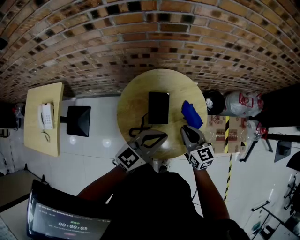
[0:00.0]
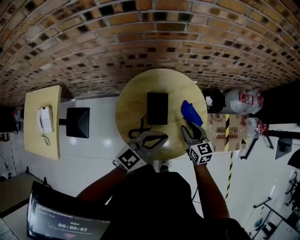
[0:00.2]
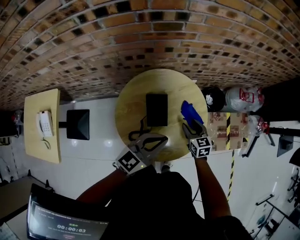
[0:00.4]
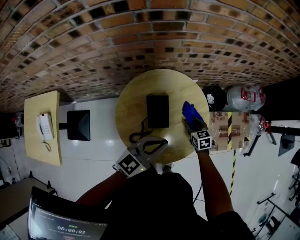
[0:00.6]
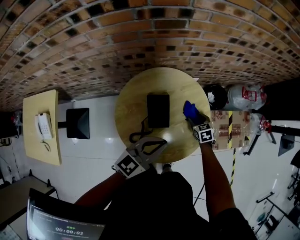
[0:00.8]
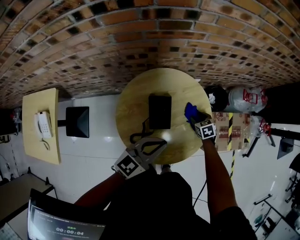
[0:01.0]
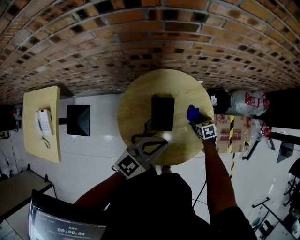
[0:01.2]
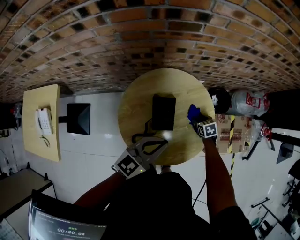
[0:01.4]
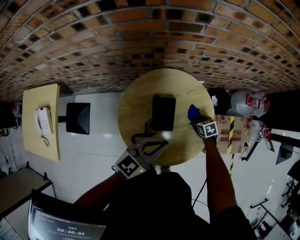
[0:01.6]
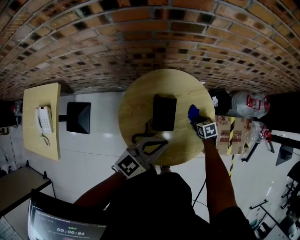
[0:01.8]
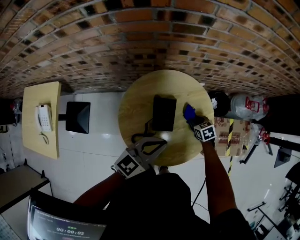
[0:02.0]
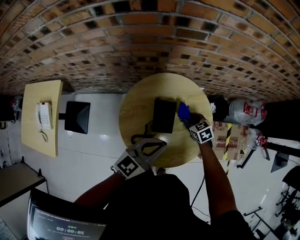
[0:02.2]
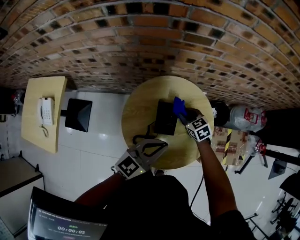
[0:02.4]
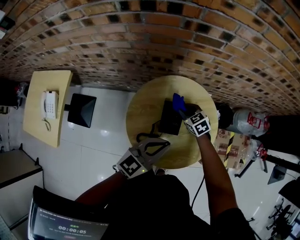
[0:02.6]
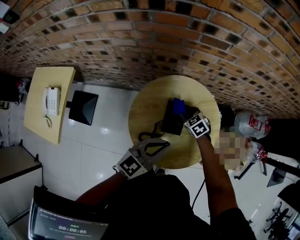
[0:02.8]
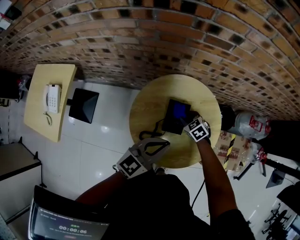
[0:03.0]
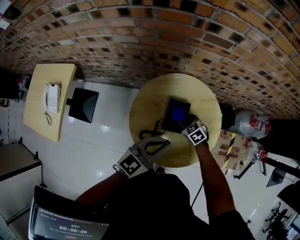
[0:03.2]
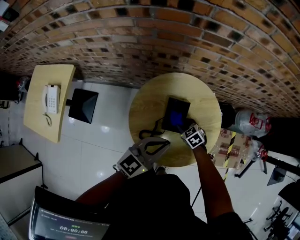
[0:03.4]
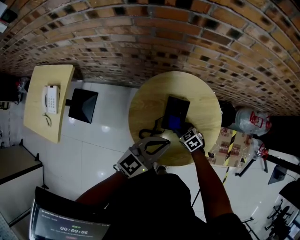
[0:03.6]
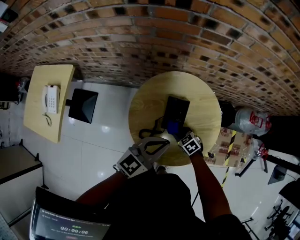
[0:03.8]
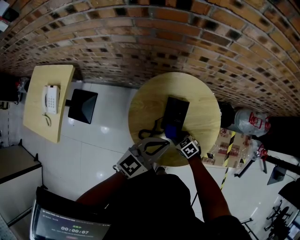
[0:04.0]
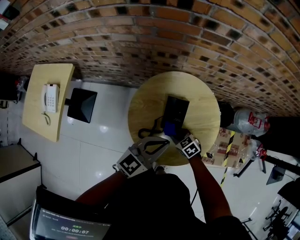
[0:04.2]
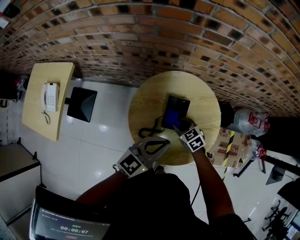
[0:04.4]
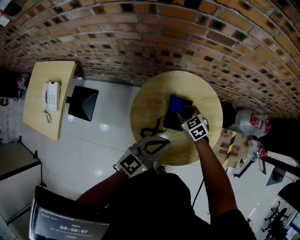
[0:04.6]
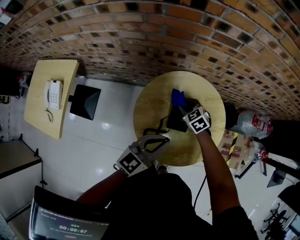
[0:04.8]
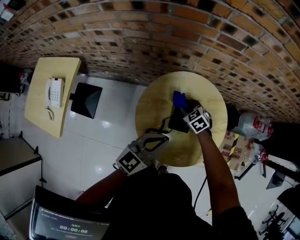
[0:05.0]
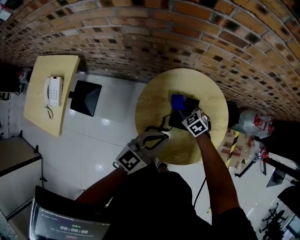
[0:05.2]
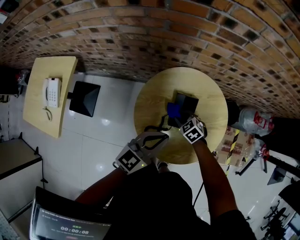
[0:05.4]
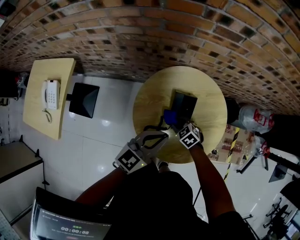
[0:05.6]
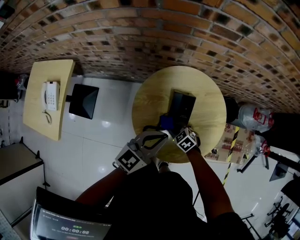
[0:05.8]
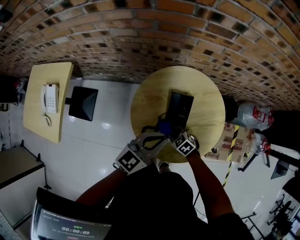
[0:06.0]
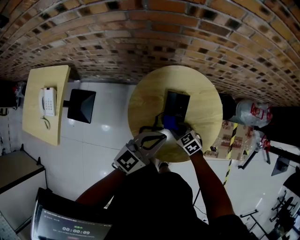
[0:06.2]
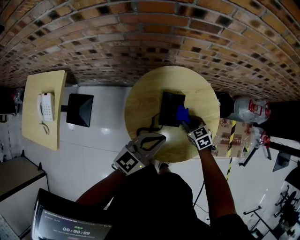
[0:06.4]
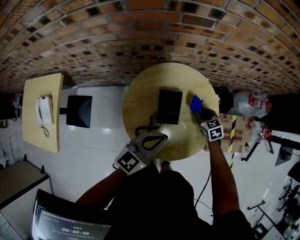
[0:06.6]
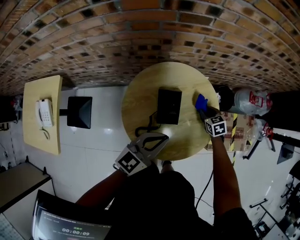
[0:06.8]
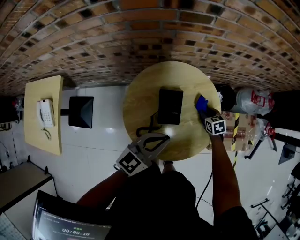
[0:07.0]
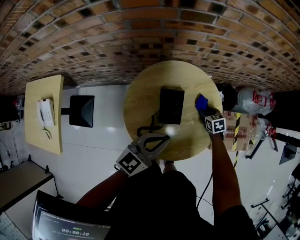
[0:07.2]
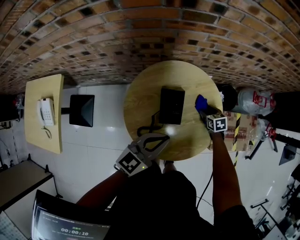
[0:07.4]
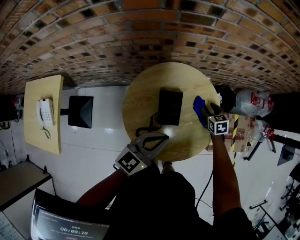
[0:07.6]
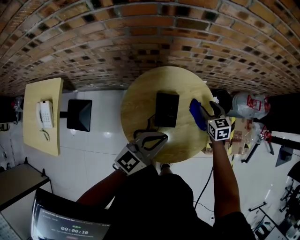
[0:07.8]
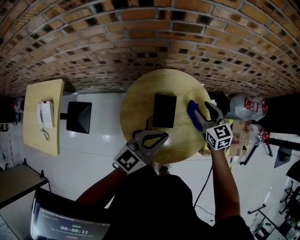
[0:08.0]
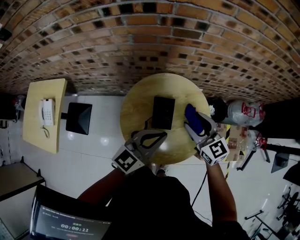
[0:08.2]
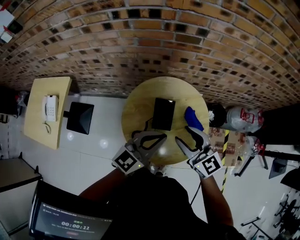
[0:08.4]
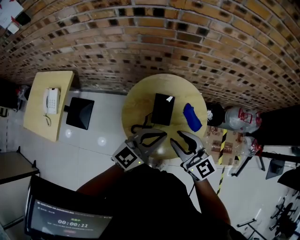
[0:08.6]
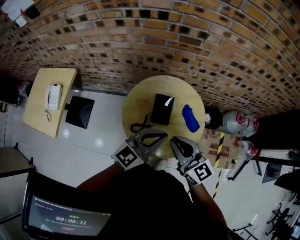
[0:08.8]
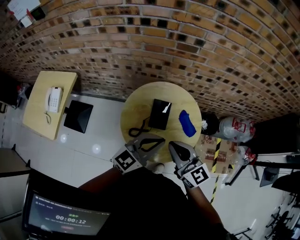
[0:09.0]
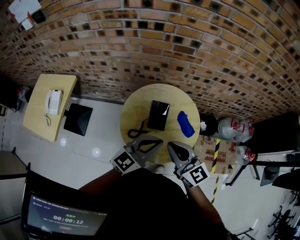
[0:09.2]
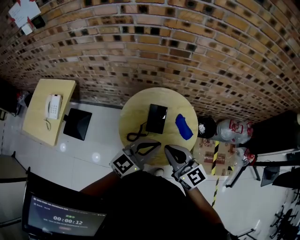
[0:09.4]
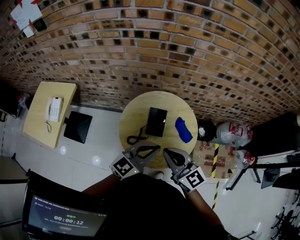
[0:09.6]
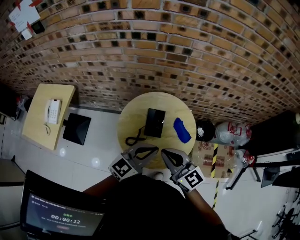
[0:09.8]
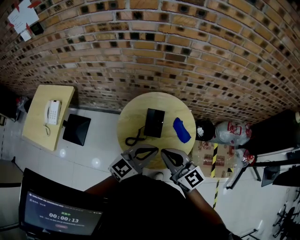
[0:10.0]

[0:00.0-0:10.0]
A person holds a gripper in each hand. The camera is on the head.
0:00.0 to 0:01.4: The left gripper ends up some 5 cm from where it was. The right gripper moves downward and forward, about 30 cm, angles its fingers downward, by approximately 40 degrees, and opens its fingers.
0:01.4 to 0:02.8: The right gripper moves to the left and upward, roughly 20 cm, swivels roughly 40 degrees, and closes.
0:02.8 to 0:04.2: The right gripper travels backward by approximately 15 cm.
0:04.2 to 0:05.8: The right gripper moves approximately 15 cm forward and comes back.
0:05.8 to 0:07.2: The left gripper shifts by approximately 5 cm; the right gripper moves roughly 5 cm upward and comes back, and turns by approximately 40 degrees.
0:07.2 to 0:08.6: The right gripper is displaced upward and backward by about 40 cm, and tips its fingers upward by approximately 50 degrees. Meanwhile the left gripper is displaced upward by about 10 cm.
0:08.6 to 0:10.0: The grippers both shift backward by some 5 cm. The right gripper closes.

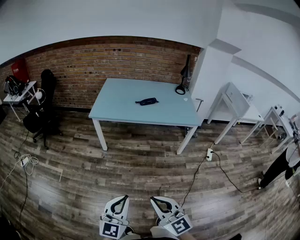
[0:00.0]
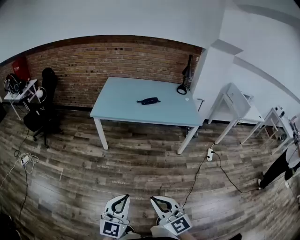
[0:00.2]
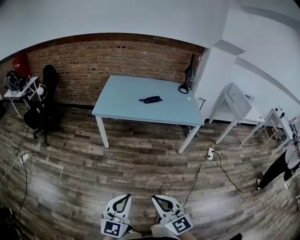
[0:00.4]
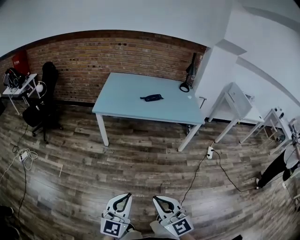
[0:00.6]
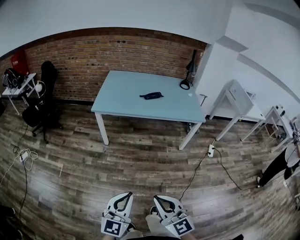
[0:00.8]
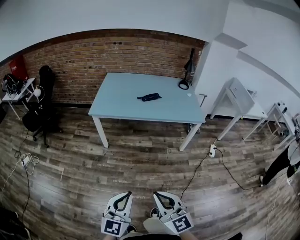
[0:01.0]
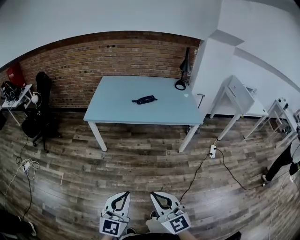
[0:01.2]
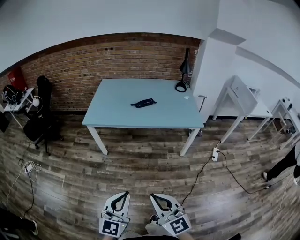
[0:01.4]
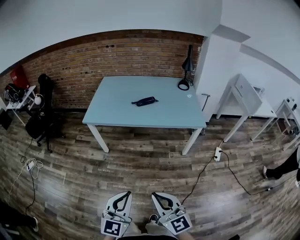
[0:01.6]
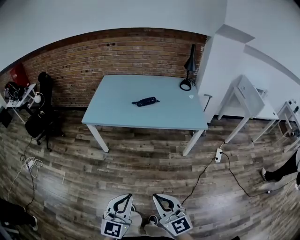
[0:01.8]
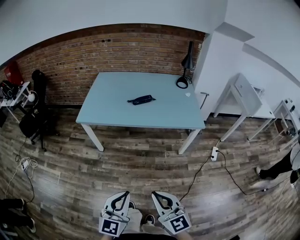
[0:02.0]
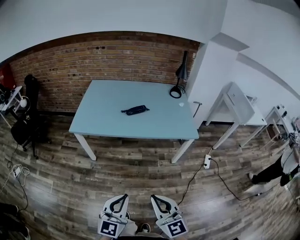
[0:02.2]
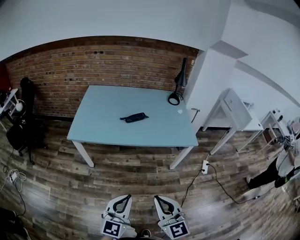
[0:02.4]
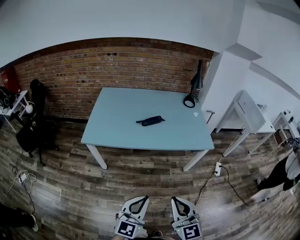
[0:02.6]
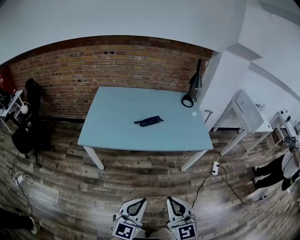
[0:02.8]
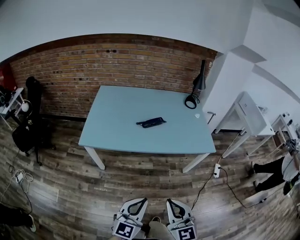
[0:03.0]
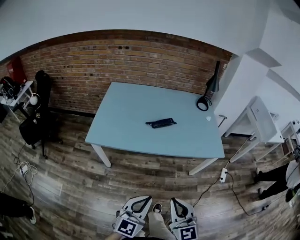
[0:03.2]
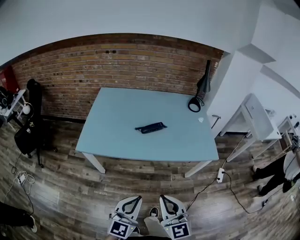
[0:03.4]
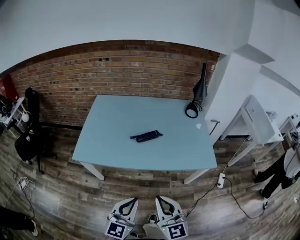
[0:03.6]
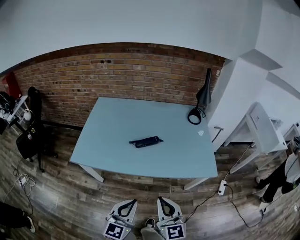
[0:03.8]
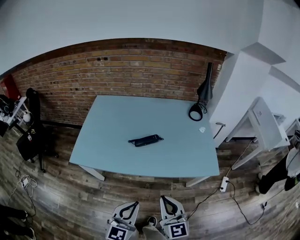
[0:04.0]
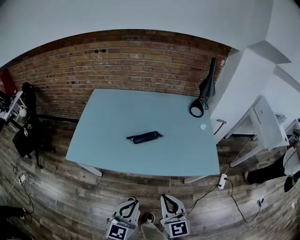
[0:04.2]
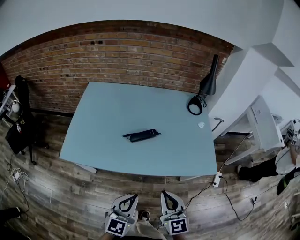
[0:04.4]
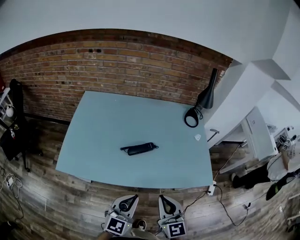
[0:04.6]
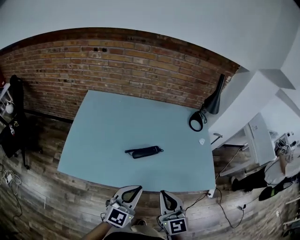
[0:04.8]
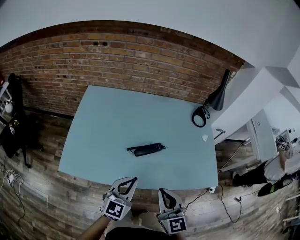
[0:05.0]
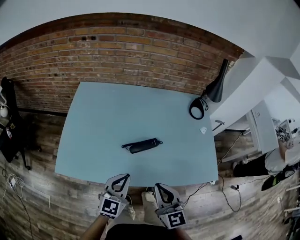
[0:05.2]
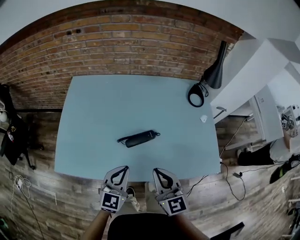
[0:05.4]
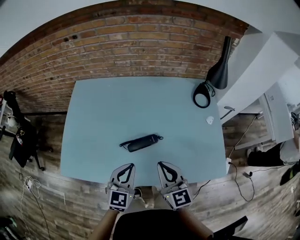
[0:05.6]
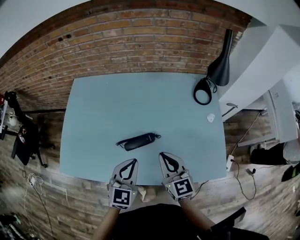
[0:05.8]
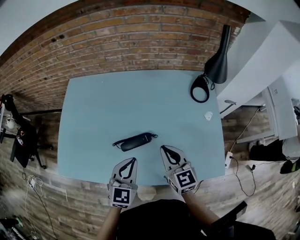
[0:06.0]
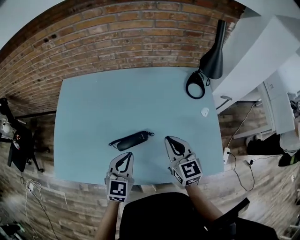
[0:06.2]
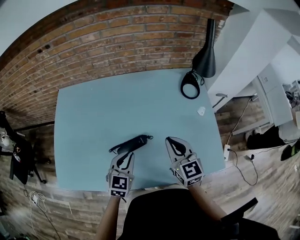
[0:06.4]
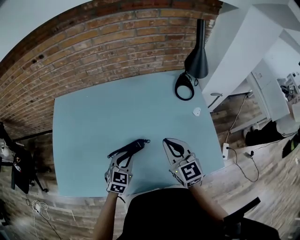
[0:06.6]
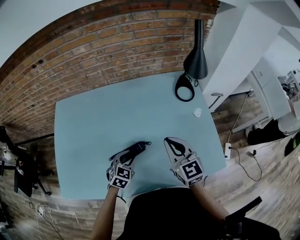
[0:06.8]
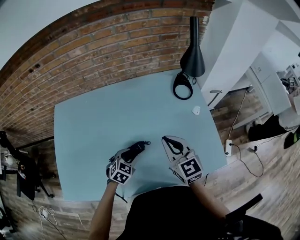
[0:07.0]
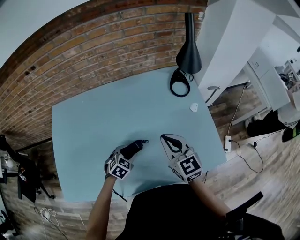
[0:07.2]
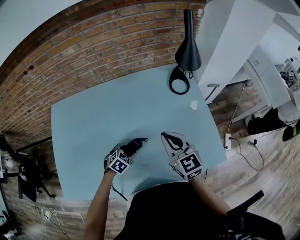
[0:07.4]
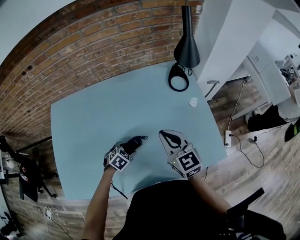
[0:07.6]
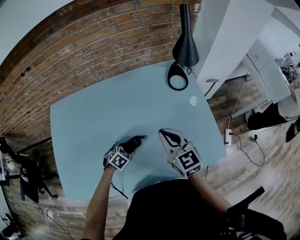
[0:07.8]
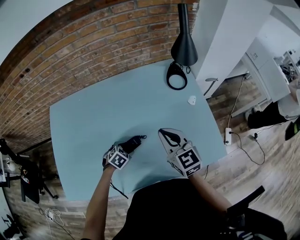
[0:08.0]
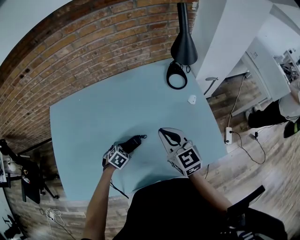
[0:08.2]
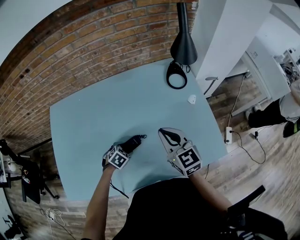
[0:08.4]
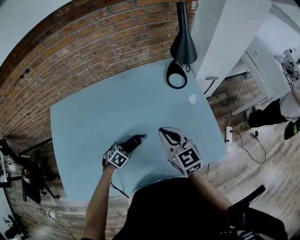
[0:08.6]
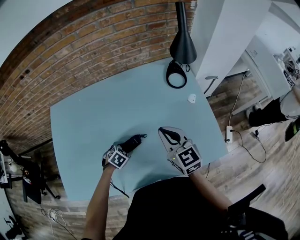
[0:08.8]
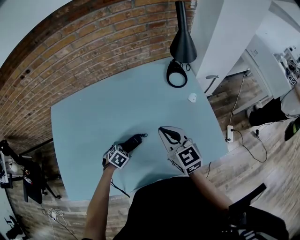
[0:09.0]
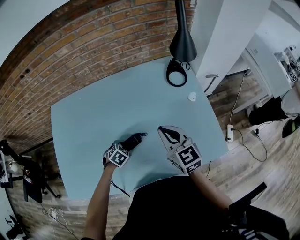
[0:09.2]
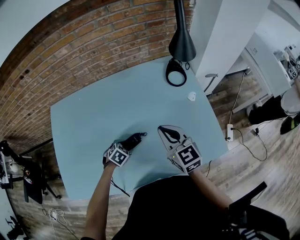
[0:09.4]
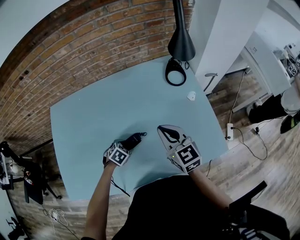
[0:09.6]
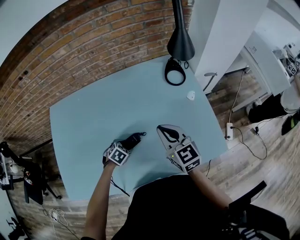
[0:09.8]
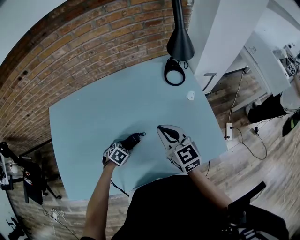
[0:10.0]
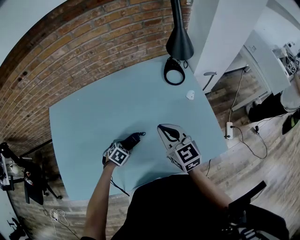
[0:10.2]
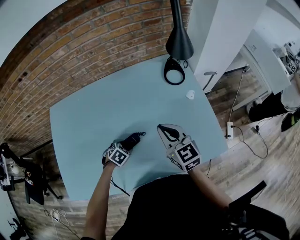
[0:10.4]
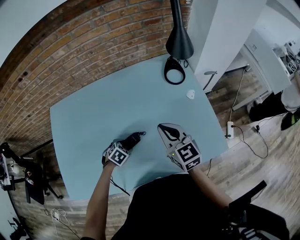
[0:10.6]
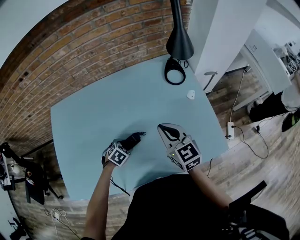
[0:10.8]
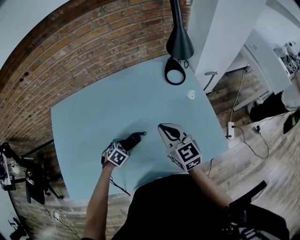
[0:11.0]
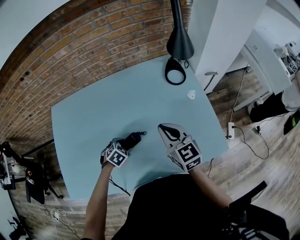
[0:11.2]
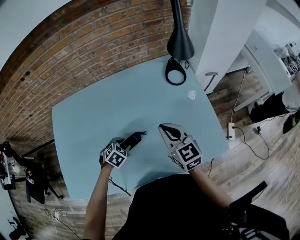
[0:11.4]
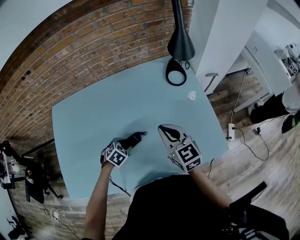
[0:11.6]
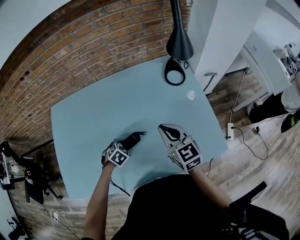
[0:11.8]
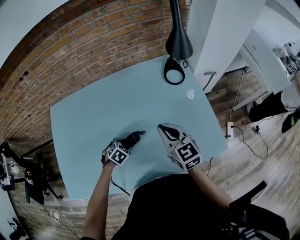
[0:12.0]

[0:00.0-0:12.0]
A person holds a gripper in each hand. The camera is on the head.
0:00.0 to 0:01.6: The two grippers go some 20 cm forward and to the right.
0:01.6 to 0:03.0: The grippers both shift forward by some 25 cm.
0:03.0 to 0:04.4: The two grippers go some 25 cm forward.
0:04.4 to 0:06.0: Both grippers move forward, about 30 cm.
0:06.0 to 0:07.6: The right gripper is displaced forward and to the right by some 5 cm. Meanwhile the left gripper shifts about 20 cm downward, tips its fingers downward by about 40 degrees, and opens up.
0:07.6 to 0:09.0: The grippers make only small movements.
0:09.0 to 0:10.4: Neither gripper changes place.
0:10.4 to 0:12.0: The grippers make only small movements.

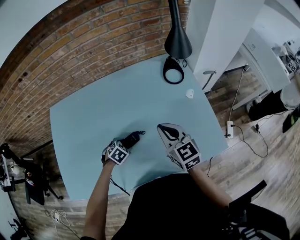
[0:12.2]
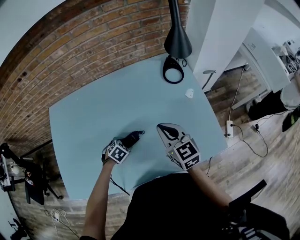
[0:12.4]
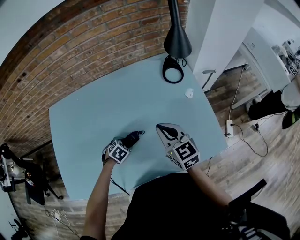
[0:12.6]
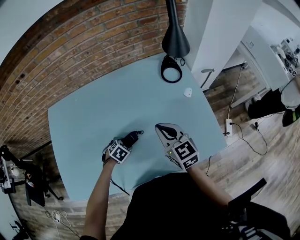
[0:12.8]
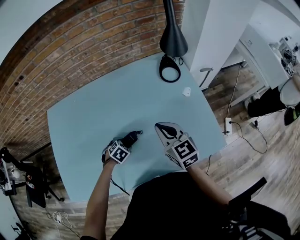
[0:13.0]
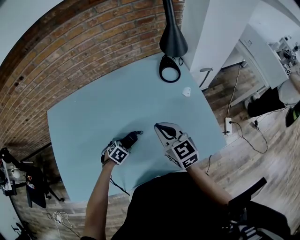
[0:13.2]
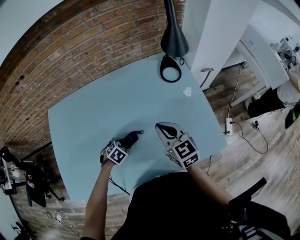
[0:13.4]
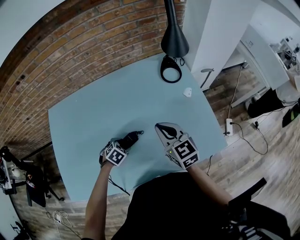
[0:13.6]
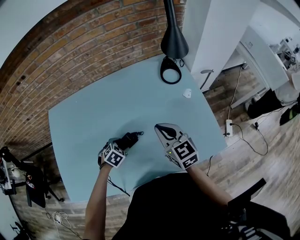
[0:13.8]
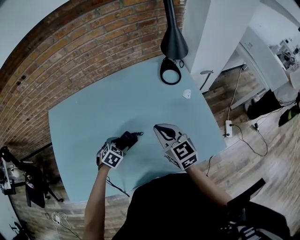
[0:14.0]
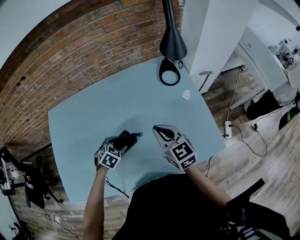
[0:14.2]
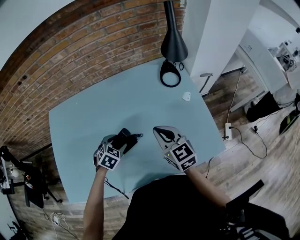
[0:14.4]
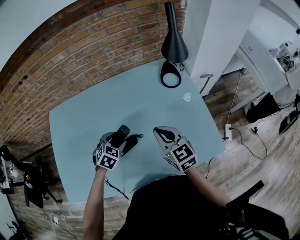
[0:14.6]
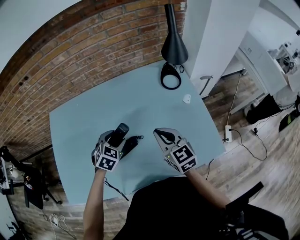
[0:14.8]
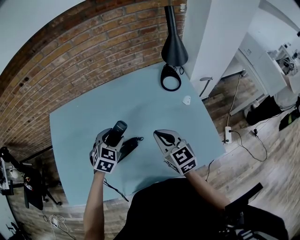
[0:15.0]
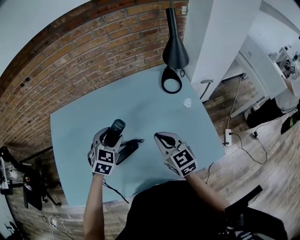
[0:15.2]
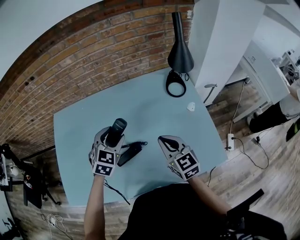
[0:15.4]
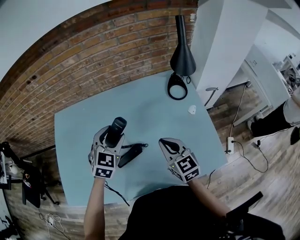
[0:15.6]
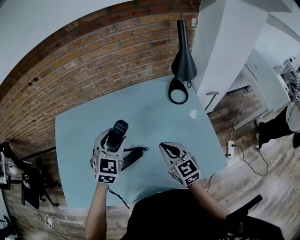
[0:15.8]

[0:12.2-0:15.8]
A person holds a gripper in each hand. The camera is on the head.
0:12.2 to 0:14.0: There are only small adjustments of the grippers.
0:14.0 to 0:15.8: The left gripper travels upward by about 25 cm, and tips its fingers upward by about 40 degrees.
